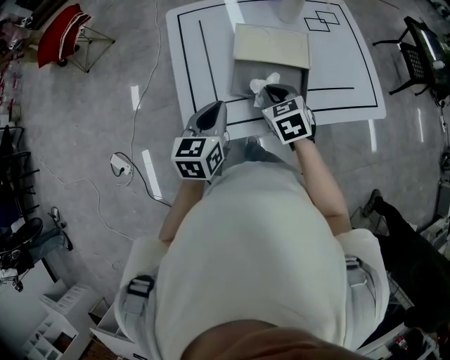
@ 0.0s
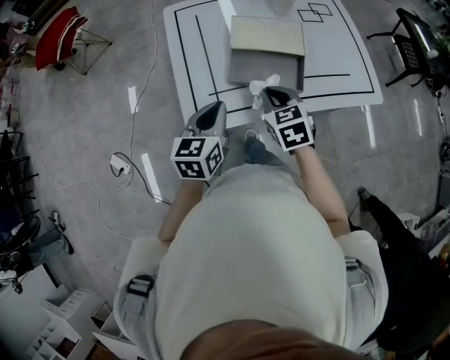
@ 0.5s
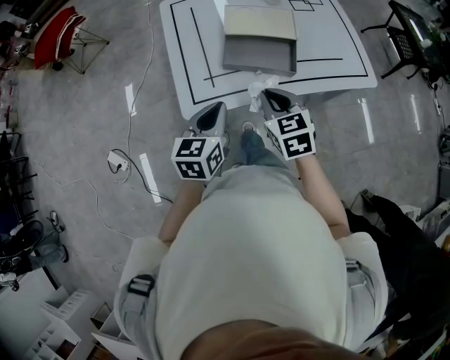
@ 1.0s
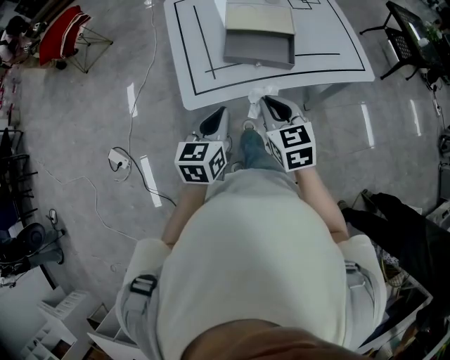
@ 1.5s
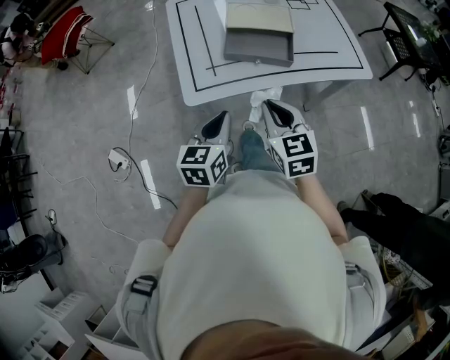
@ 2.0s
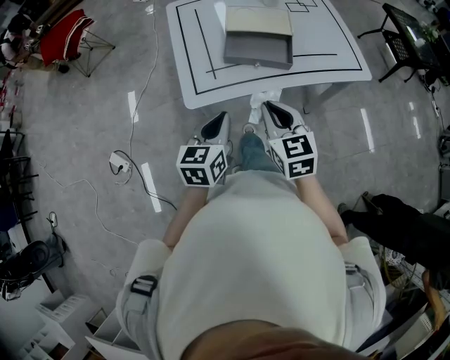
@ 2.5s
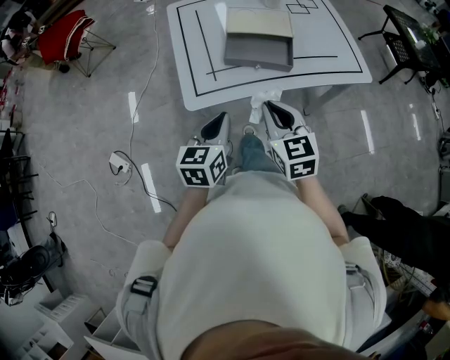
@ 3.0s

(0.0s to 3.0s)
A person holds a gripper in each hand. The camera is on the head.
0.0s - 1.5s: Both grippers travel together backward, about 20 cm.
1.5s - 3.0s: The grippers make only small movements.

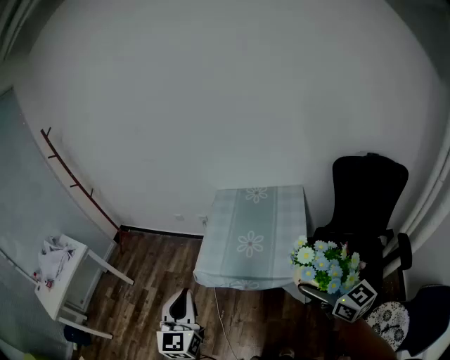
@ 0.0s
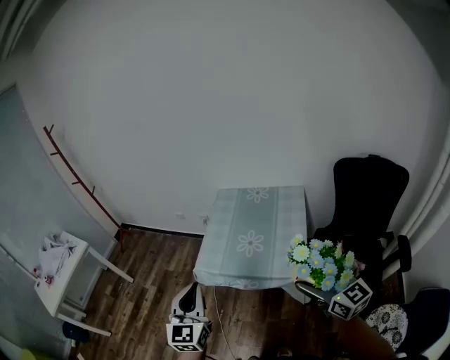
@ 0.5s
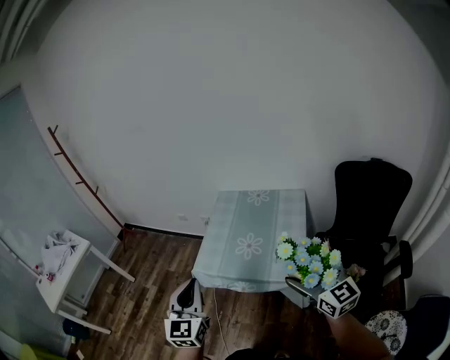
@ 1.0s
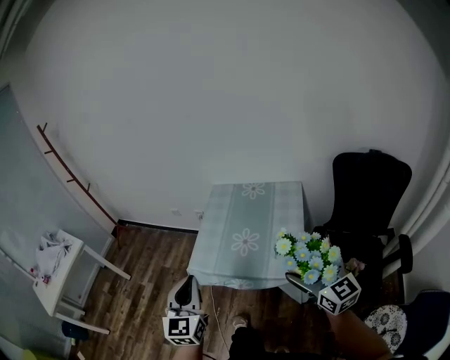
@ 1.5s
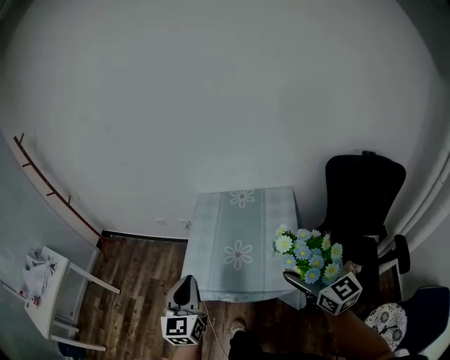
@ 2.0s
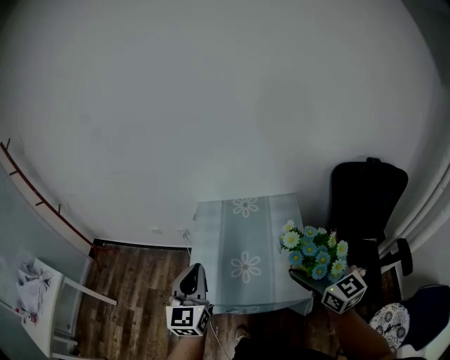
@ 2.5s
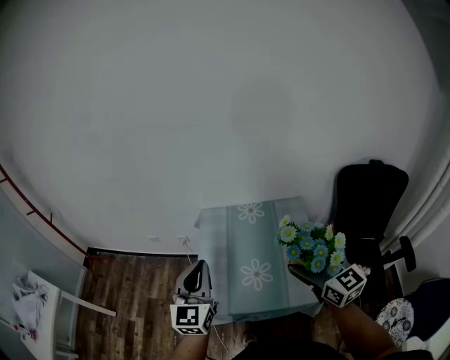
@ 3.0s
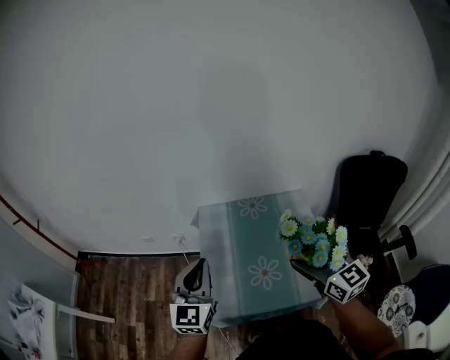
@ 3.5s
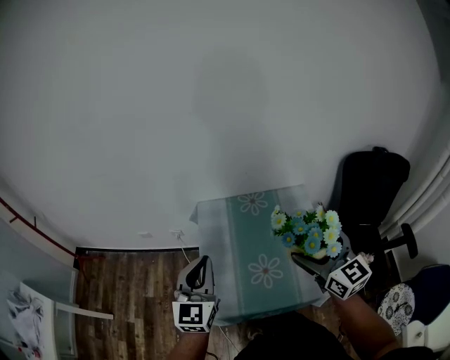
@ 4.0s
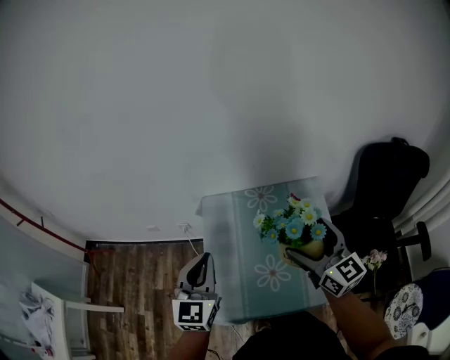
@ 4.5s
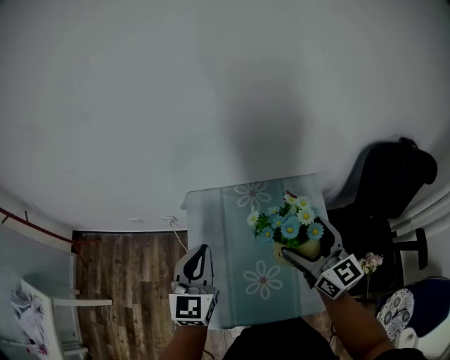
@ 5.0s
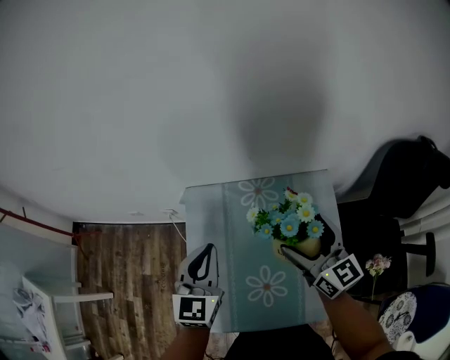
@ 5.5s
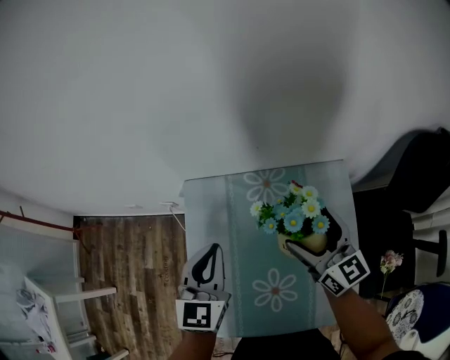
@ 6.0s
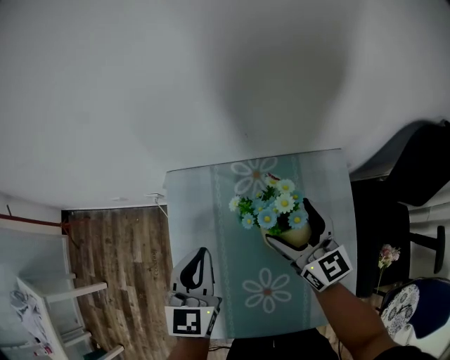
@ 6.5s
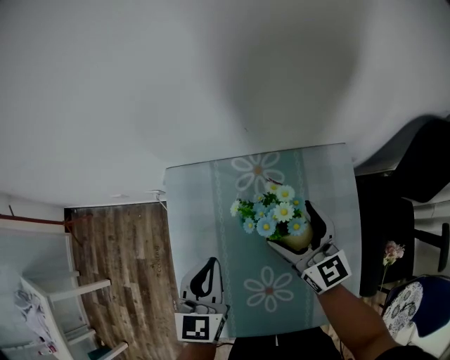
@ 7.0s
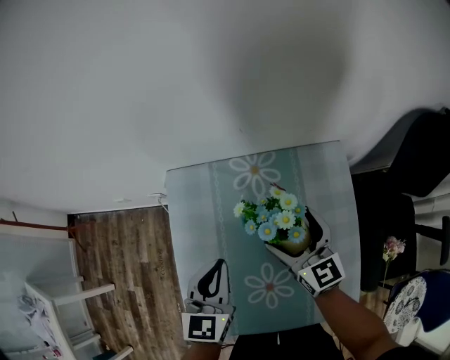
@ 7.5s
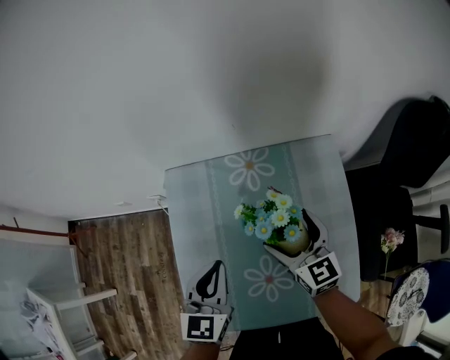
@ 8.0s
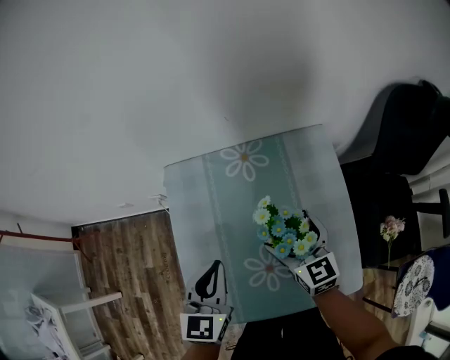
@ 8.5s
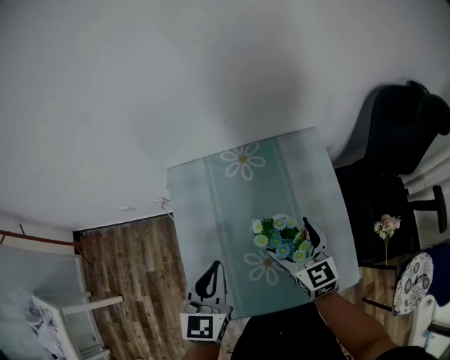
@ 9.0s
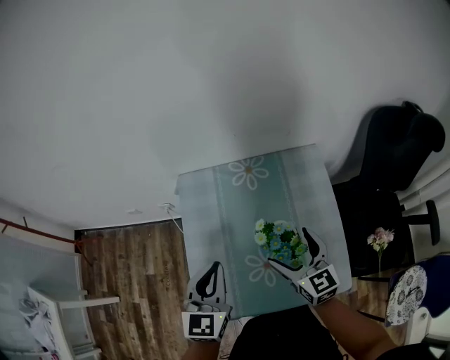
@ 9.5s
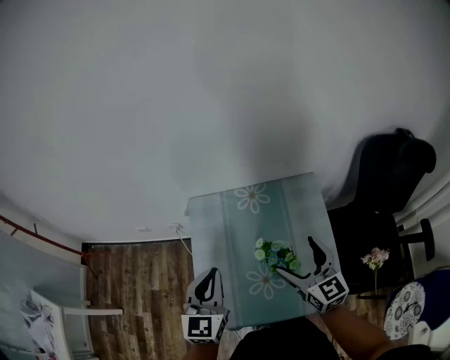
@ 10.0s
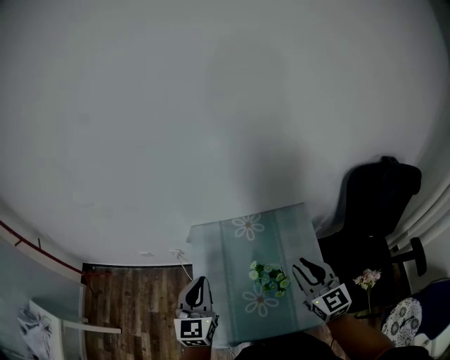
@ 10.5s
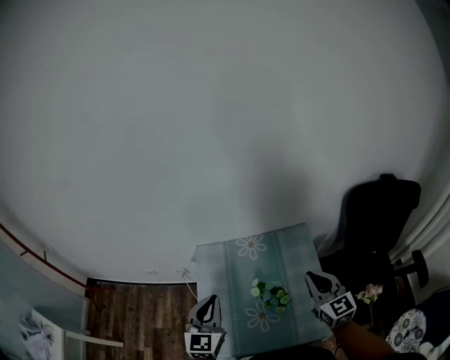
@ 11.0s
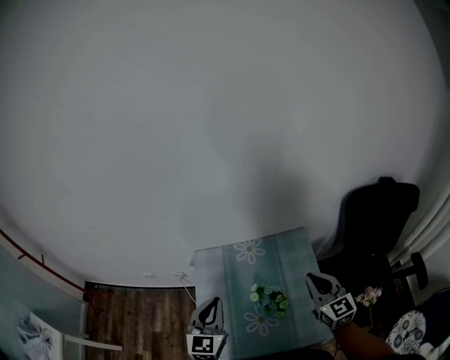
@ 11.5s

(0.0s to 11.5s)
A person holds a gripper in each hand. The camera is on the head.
0.0s - 2.0s: The left gripper heads forward and to the right, covering about 15 cm. Meanwhile the right gripper is displaced forward by roughly 15 cm.
2.0s - 4.0s: The right gripper heads forward and to the left, covering approximately 25 cm, while the left gripper moves forward, about 25 cm.
4.0s - 6.0s: The right gripper moves forward and downward, approximately 30 cm, while the left gripper heads forward, downward and to the right, covering some 25 cm.
6.0s - 7.5s: Both grippers travel together downward, about 10 cm.
7.5s - 9.5s: The left gripper travels backward and upward by roughly 10 cm. Meanwhile the right gripper is displaced backward by roughly 15 cm.
9.5s - 11.5s: The left gripper goes roughly 10 cm upward; the right gripper heads upward and to the right, covering some 20 cm, and closes its fingers.

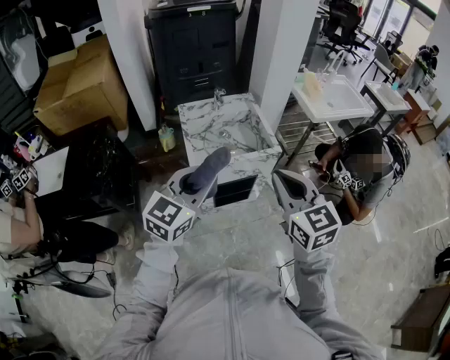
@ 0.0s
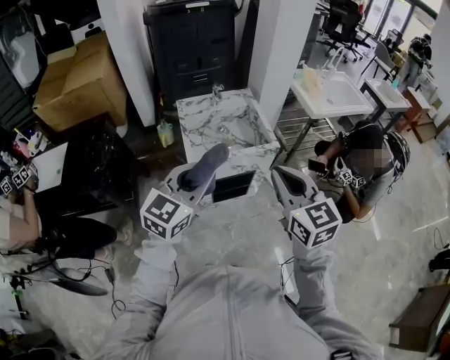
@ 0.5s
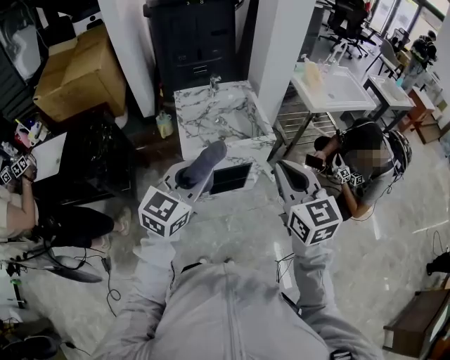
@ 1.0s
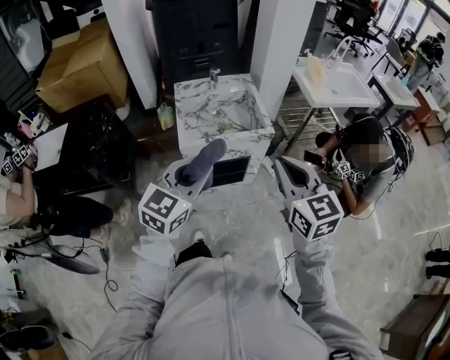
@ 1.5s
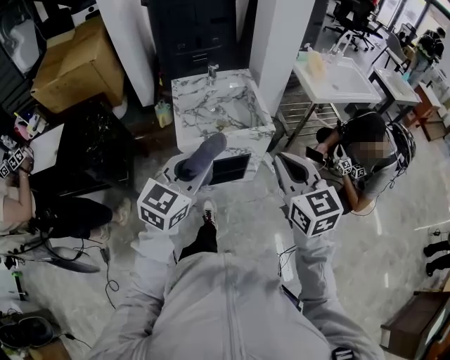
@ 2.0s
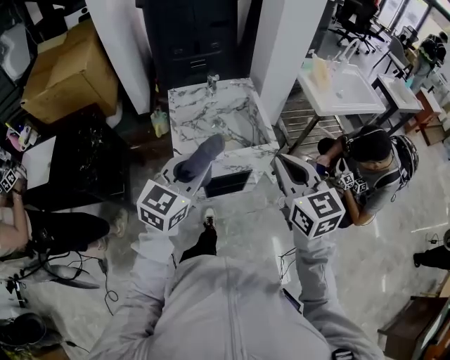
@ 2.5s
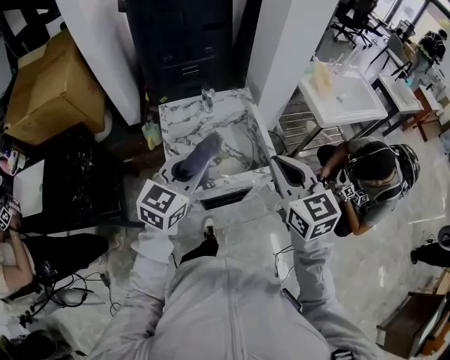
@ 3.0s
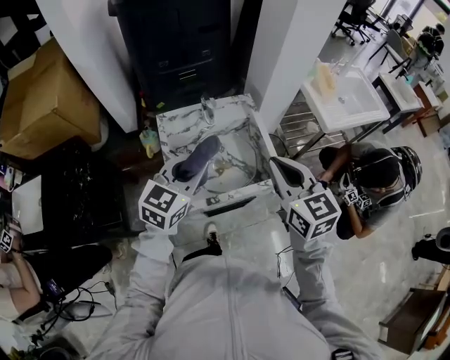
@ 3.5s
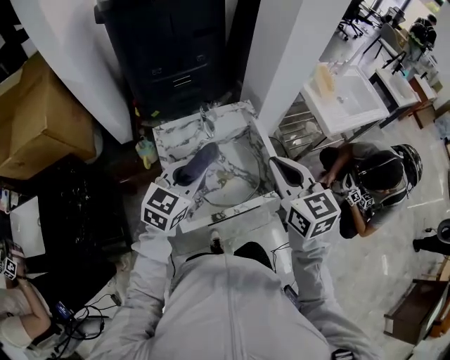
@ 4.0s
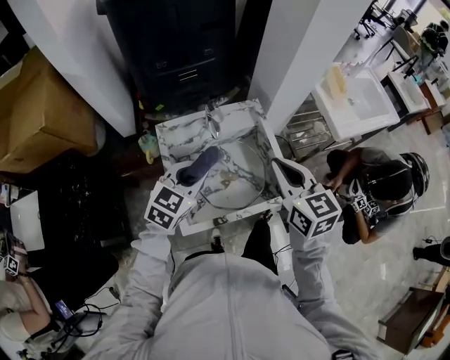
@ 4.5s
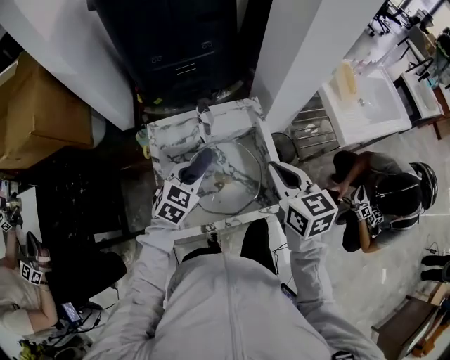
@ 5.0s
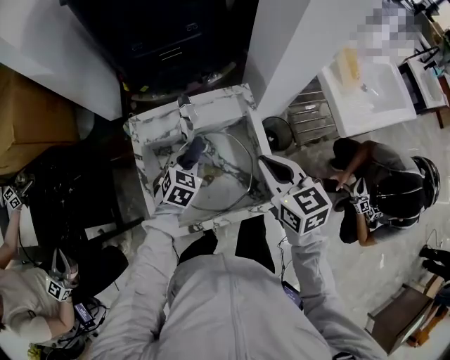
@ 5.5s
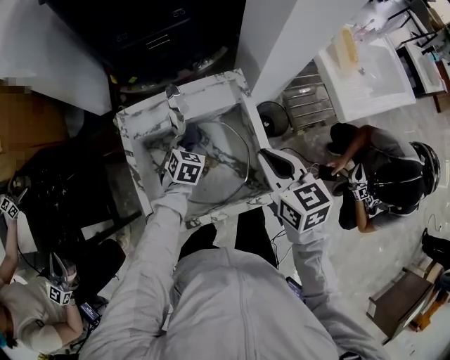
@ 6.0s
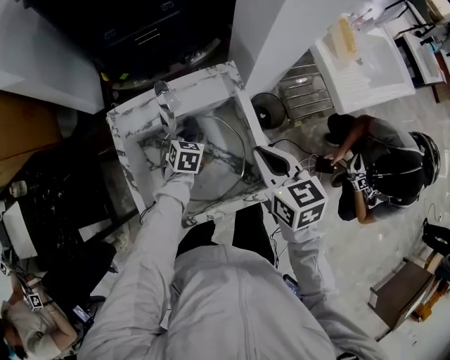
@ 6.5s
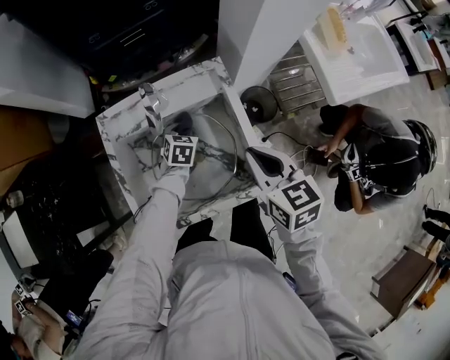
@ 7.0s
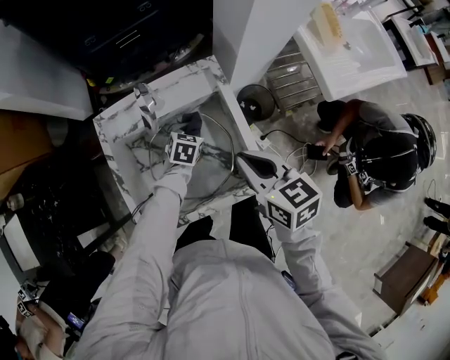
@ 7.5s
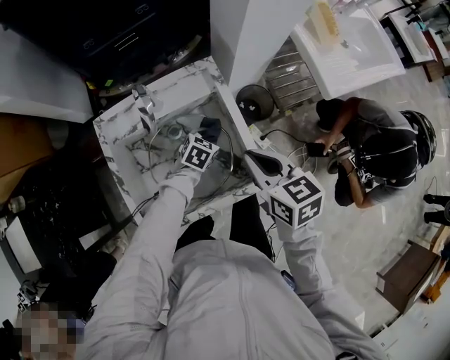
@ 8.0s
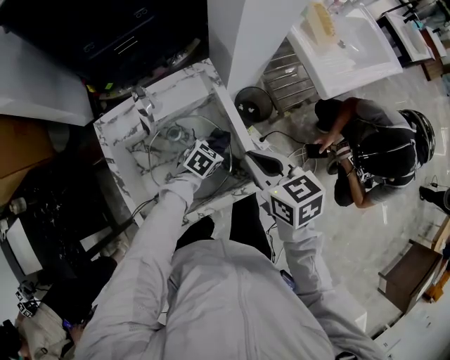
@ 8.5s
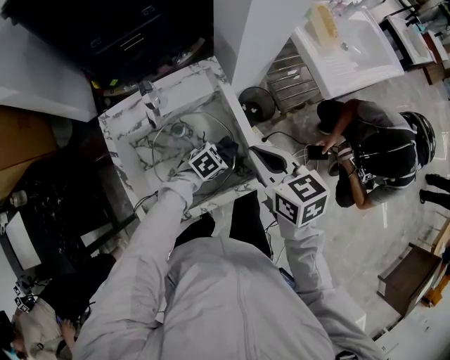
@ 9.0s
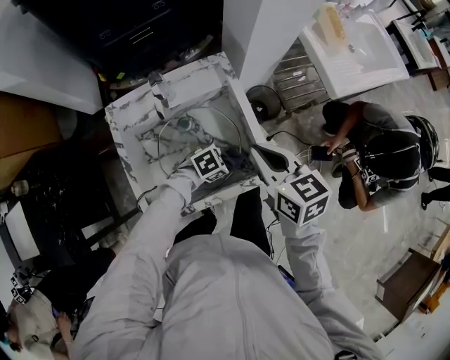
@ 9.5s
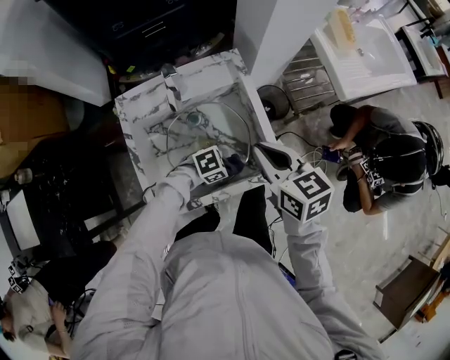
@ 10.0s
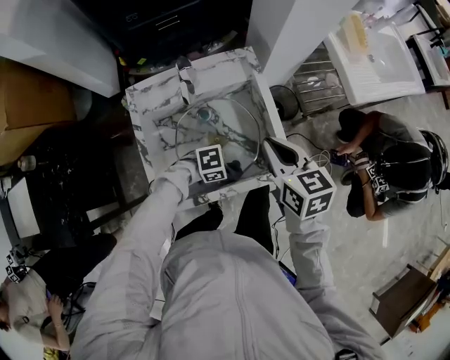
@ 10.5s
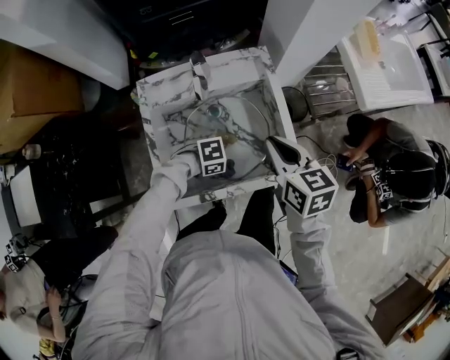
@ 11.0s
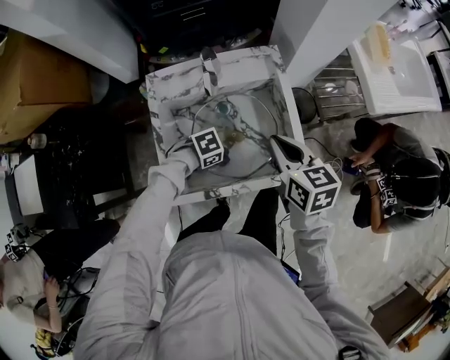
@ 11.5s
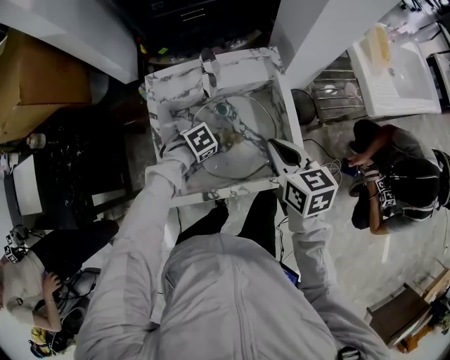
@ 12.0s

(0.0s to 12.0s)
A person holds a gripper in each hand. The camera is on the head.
0.0s - 2.0s: Both grippers move to the right, roughly 5 cm.
2.0s - 4.0s: Both grippers move forward, about 35 cm.
4.0s - 6.0s: The left gripper goes roughly 30 cm downward and forward, and tilts its fingers about 30 degrees downward; the right gripper heads downward, forward and to the right, covering approximately 20 cm.
6.0s - 8.0s: The left gripper moves to the right, about 15 cm, and turns by about 20 degrees.
8.0s - 10.0s: The left gripper ends up some 20 cm from where it was, and changes its angle by about 40 degrees.
10.0s - 12.0s: The right gripper changes place by roughly 5 cm. Meanwhile the left gripper moves some 20 cm, and changes its angle by some 30 degrees.
